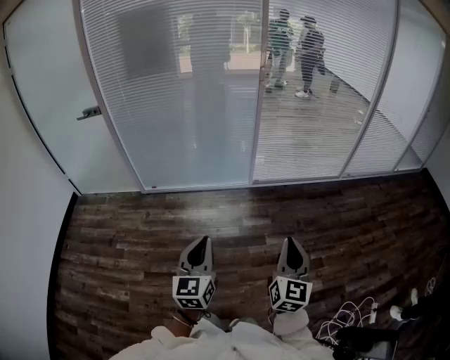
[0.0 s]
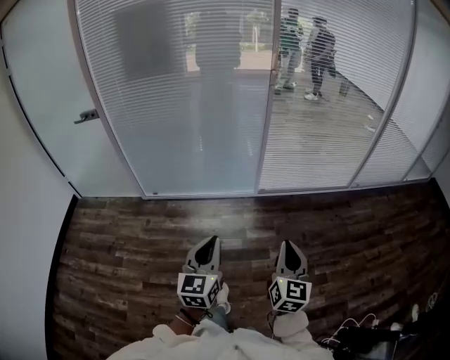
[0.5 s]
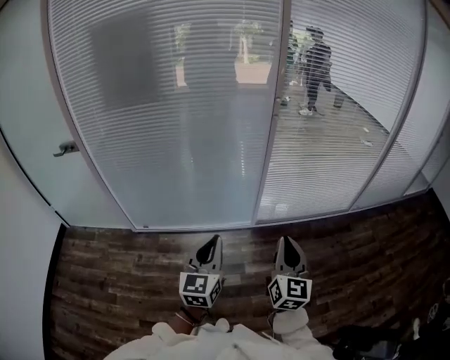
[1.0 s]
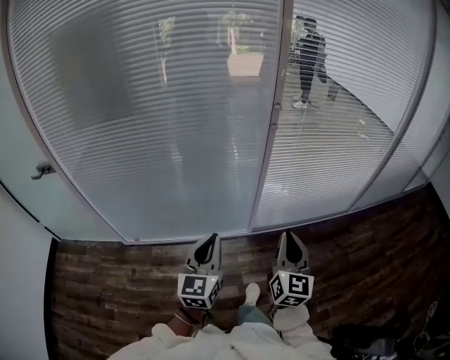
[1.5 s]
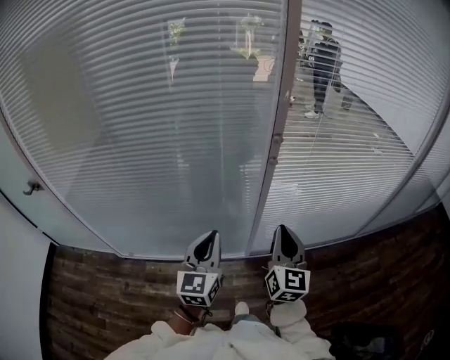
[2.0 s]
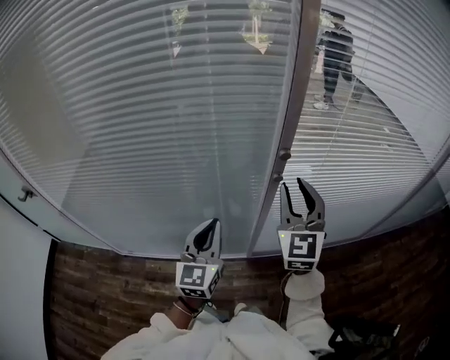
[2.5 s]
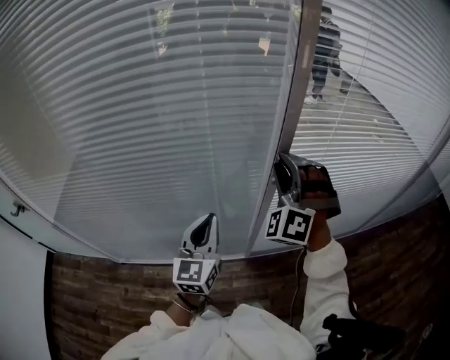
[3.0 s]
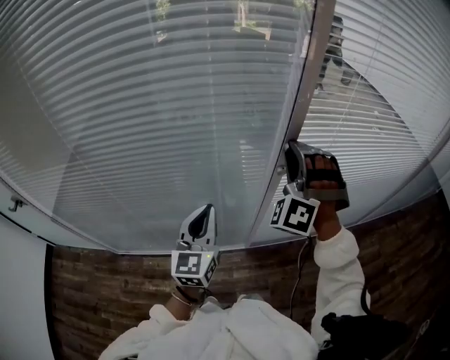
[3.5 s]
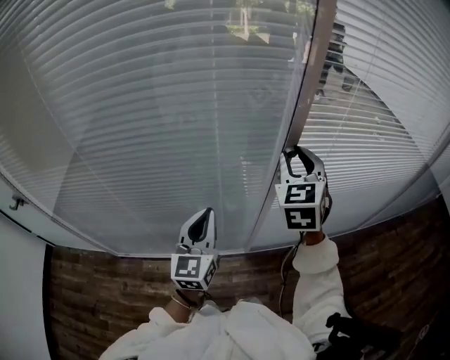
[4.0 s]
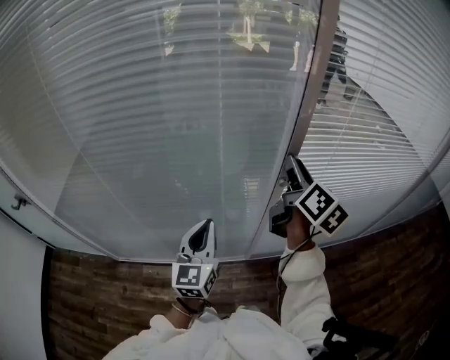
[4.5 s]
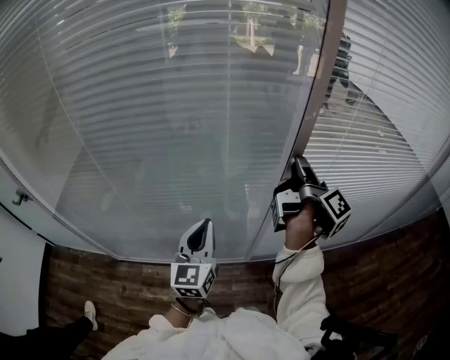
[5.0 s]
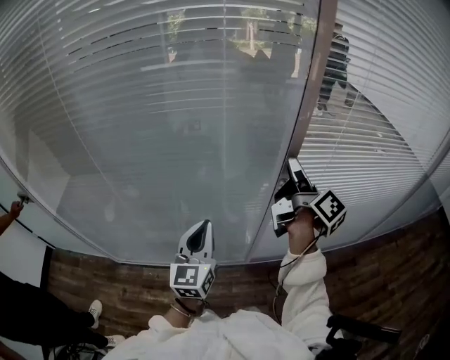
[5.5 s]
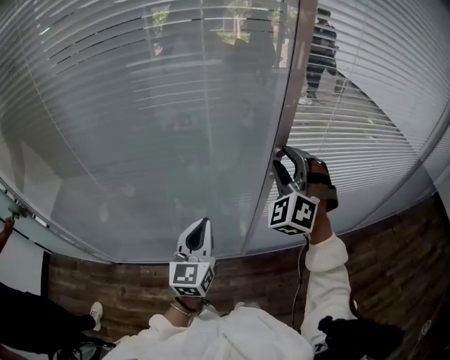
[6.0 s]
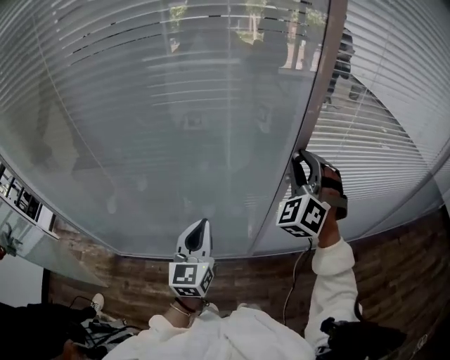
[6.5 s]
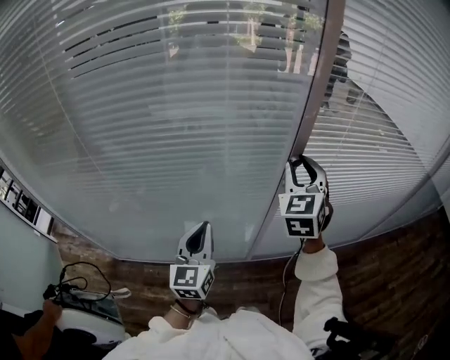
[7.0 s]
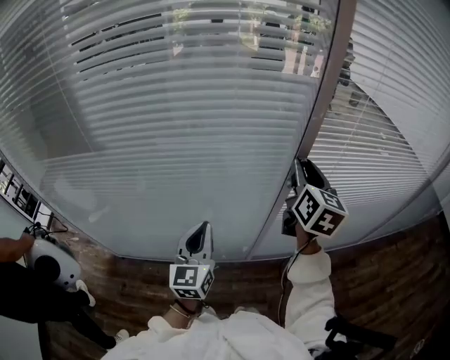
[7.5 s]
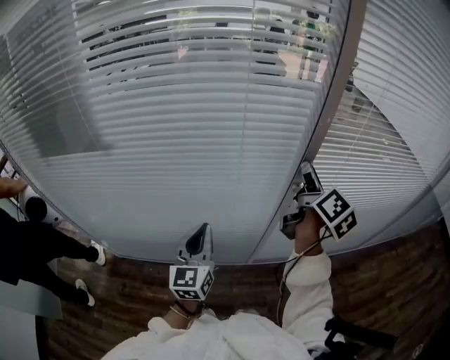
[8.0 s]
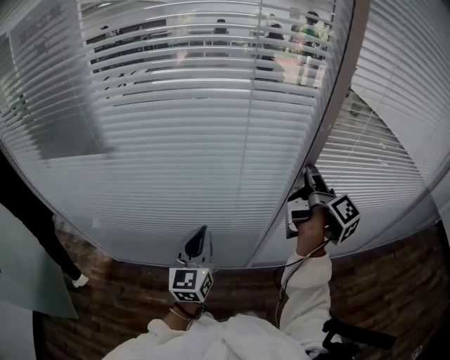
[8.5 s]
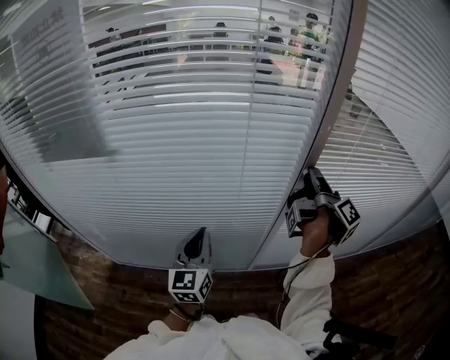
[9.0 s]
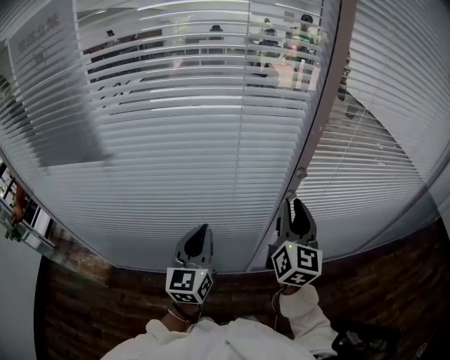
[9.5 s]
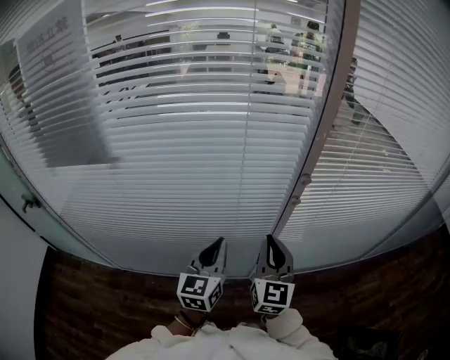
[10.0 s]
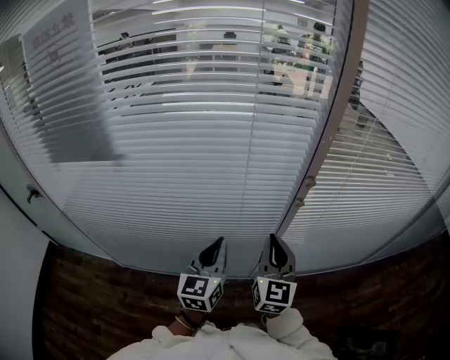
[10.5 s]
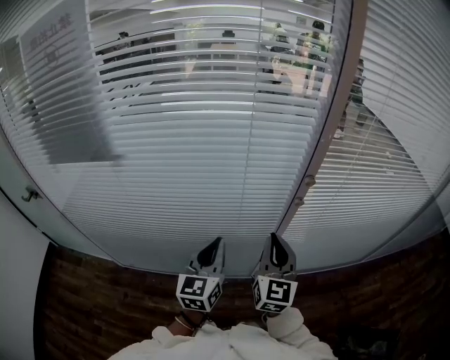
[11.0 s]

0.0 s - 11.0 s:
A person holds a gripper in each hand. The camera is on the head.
0.0 s - 2.0 s: The pair of grippers is taken forward, roughly 80 cm.
2.0 s - 3.5 s: The left gripper moves forward, roughly 15 cm, while the right gripper shifts roughly 25 cm forward and upward, twists roughly 90 degrees counterclockwise, seen from behind, and opens up.
3.5 s - 5.5 s: The right gripper twists approximately 150 degrees clockwise, seen from behind.
5.5 s - 7.5 s: The right gripper rotates around the line of its fingers by about 60 degrees, counterclockwise from behind.
7.5 s - 9.0 s: The right gripper rotates around the line of its fingers by approximately 80 degrees, clockwise from behind.
9.0 s - 11.0 s: The right gripper goes about 20 cm backward, to the left and downward, twists approximately 90 degrees counterclockwise, seen from behind, and closes up.

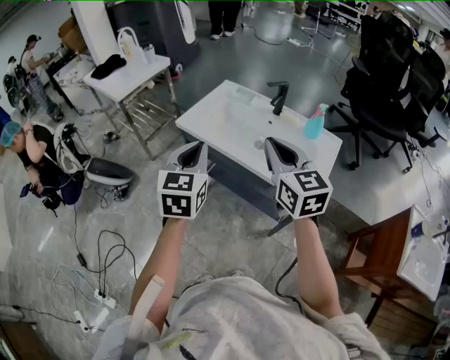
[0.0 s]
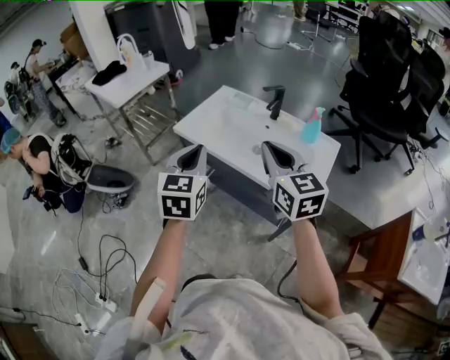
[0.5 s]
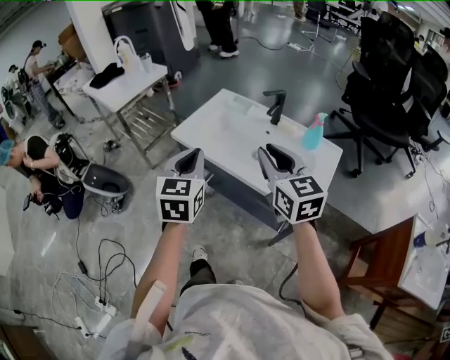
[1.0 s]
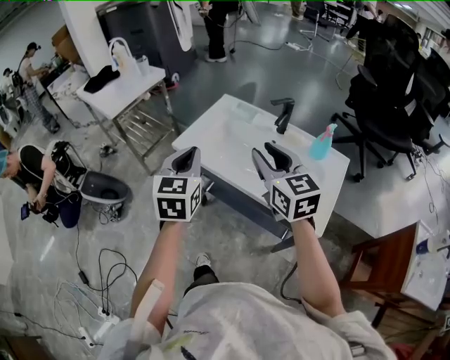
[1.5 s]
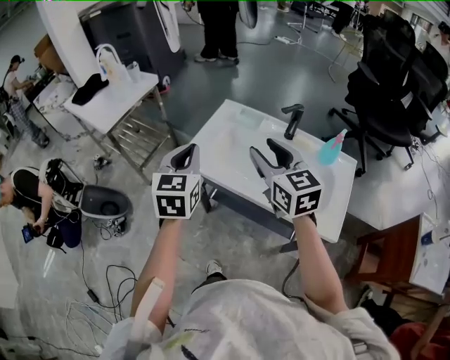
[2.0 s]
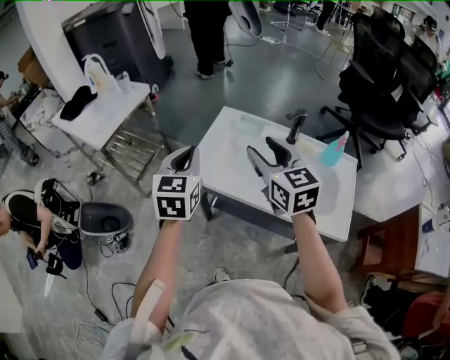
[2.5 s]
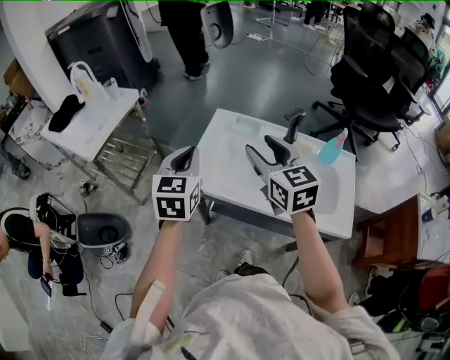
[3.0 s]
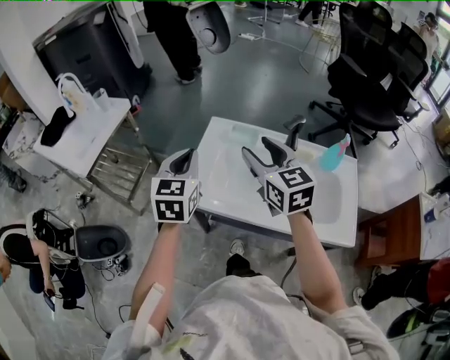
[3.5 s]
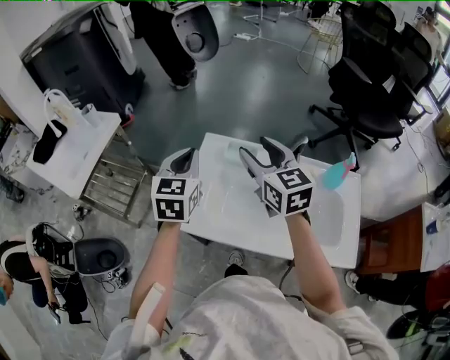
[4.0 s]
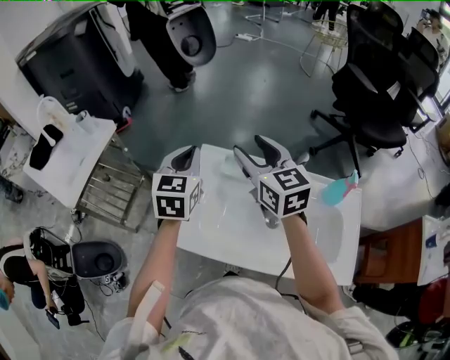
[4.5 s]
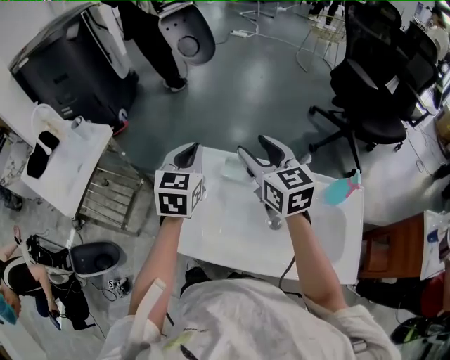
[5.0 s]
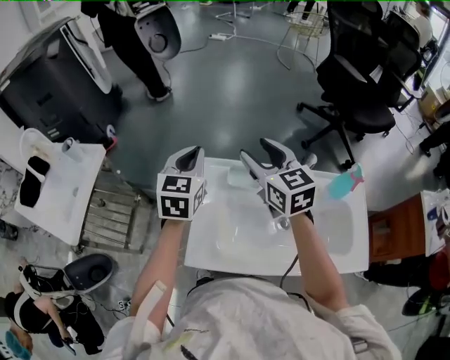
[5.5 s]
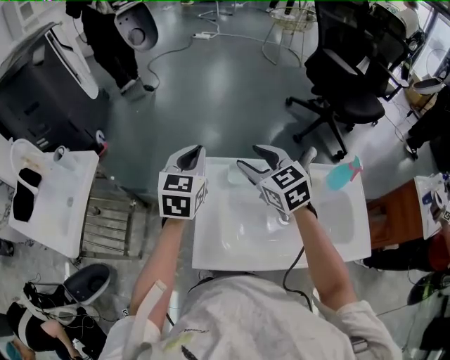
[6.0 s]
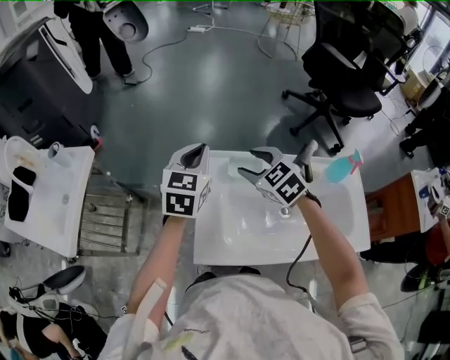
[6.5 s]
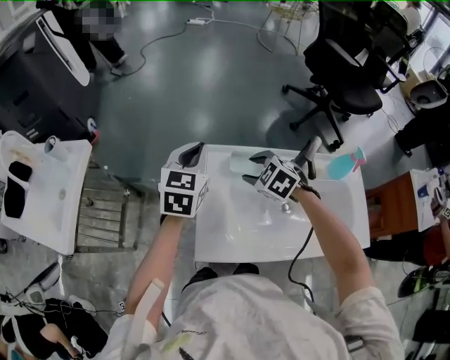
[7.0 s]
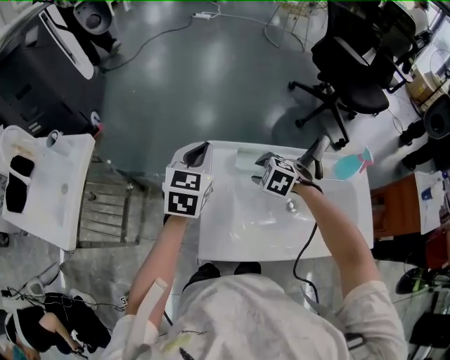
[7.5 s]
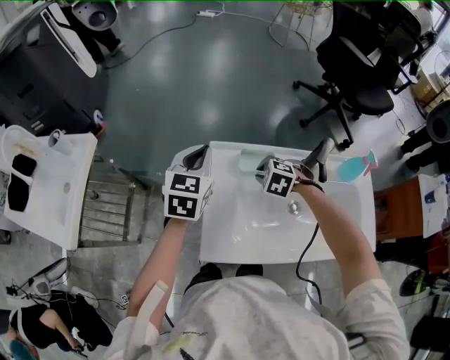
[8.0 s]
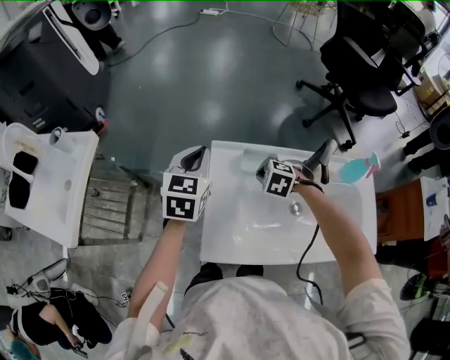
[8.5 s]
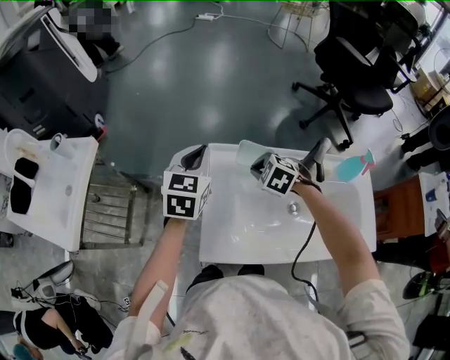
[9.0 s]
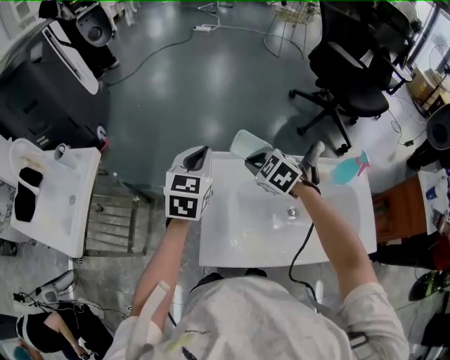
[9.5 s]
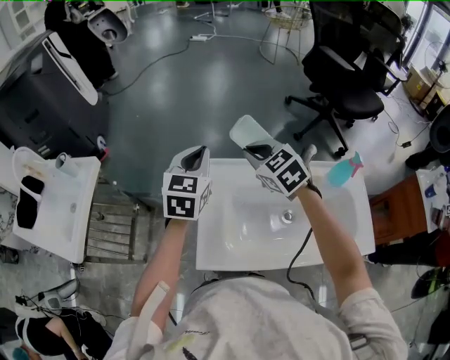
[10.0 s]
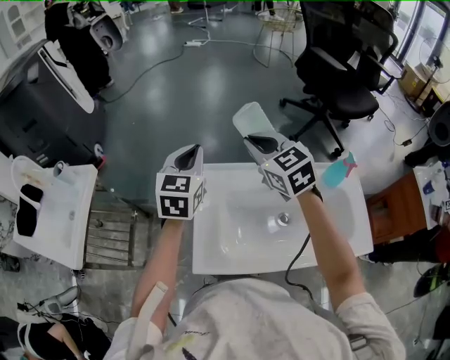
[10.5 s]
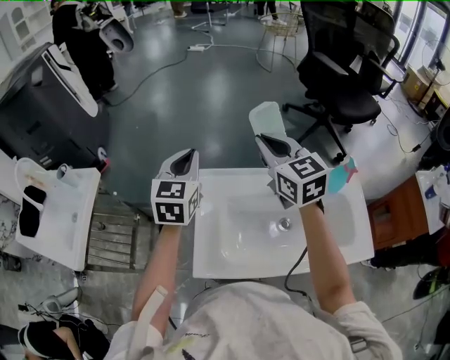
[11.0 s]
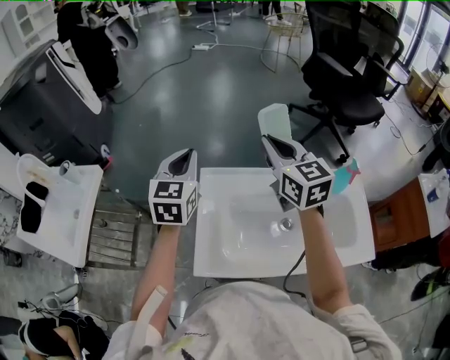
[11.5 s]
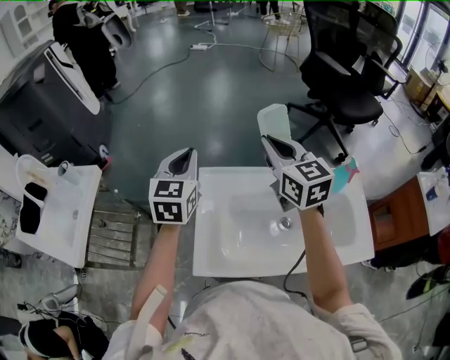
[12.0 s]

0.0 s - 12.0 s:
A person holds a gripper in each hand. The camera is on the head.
0.0 s - 2.0 s: The two grippers go about 20 cm forward. The right gripper opens its fingers.
2.0 s - 4.0 s: The grippers both shift forward by approximately 25 cm.
4.0 s - 6.0 s: The left gripper travels forward by some 15 cm. Meanwhile the right gripper travels forward and downward by approximately 10 cm.
6.0 s - 8.0 s: The right gripper moves downward, about 20 cm, tips its fingers downward by roughly 50 degrees, and closes up, while the left gripper shifts approximately 5 cm downward.
8.0 s - 10.0 s: The left gripper travels upward by about 5 cm, while the right gripper is displaced upward by about 20 cm, and angles its fingers upward, by roughly 40 degrees.
10.0 s - 12.0 s: The right gripper moves upward and to the right, approximately 10 cm, and turns by approximately 30 degrees.

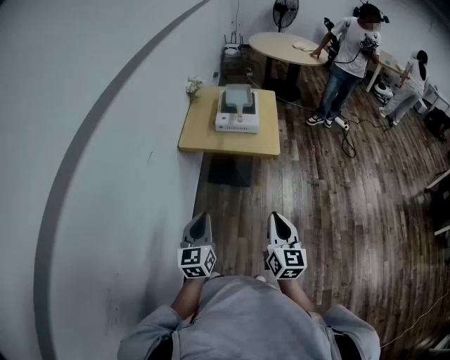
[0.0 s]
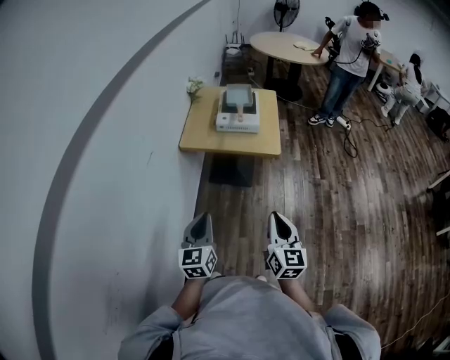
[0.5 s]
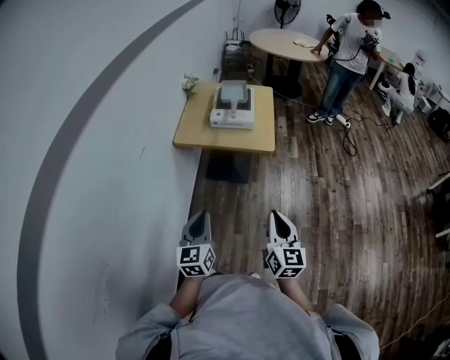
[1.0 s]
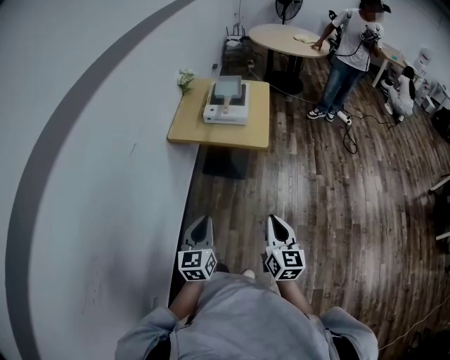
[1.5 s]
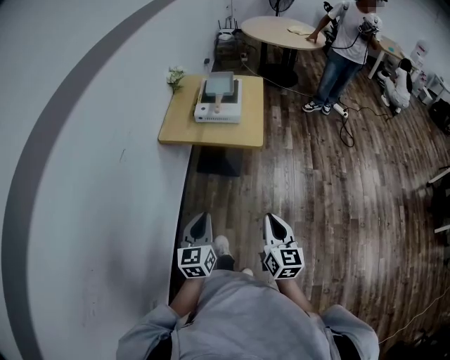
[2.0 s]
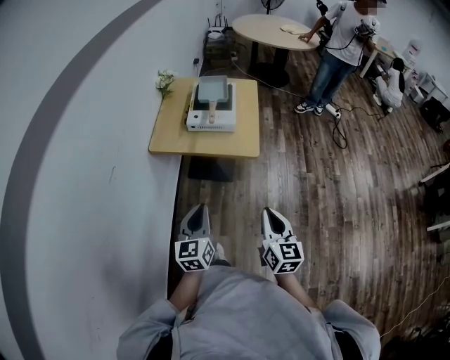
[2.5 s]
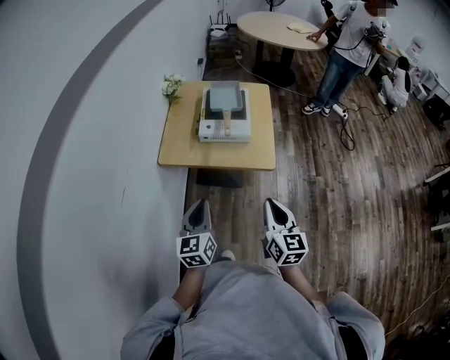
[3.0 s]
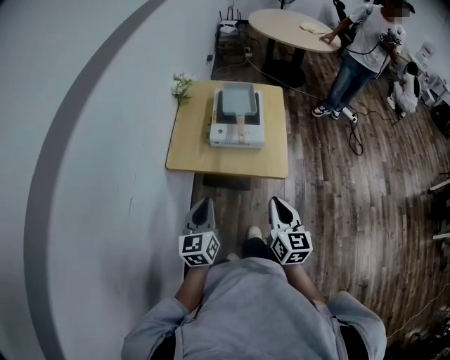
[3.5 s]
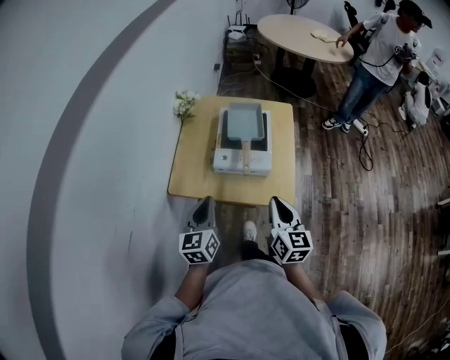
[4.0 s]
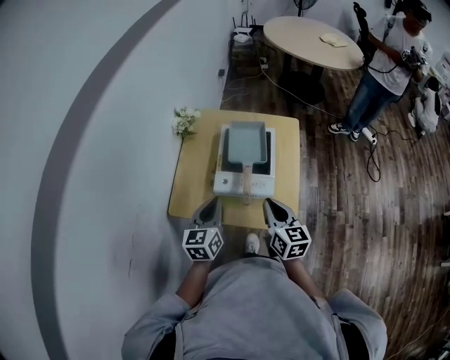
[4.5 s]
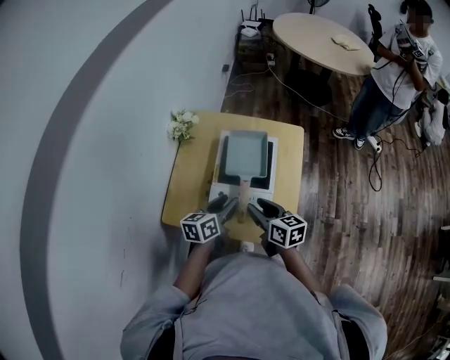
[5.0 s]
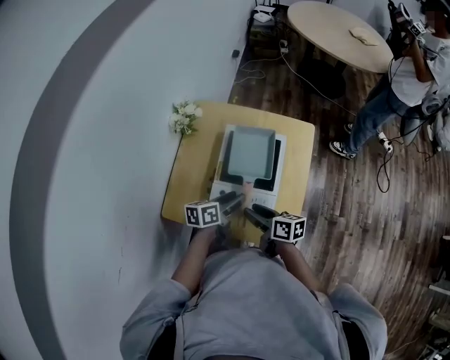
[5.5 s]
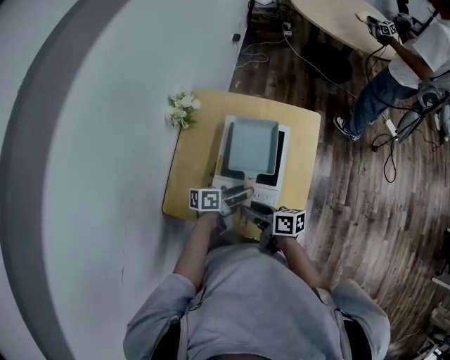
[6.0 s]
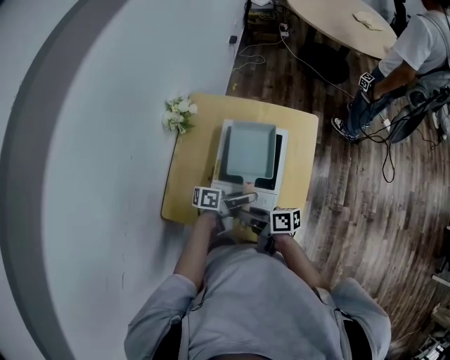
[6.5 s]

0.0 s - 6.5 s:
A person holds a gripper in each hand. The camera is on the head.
0.0 s - 2.0 s: Both grippers move to the right, some 10 cm.
2.0 s - 4.5 s: Both grippers are carried forward, some 50 cm.
4.5 s - 6.5 s: The right gripper travels downward by roughly 10 cm, swivels roughly 60 degrees, and opens its fingers. The left gripper changes place by approximately 20 cm, turns by about 70 degrees, and opens up.
